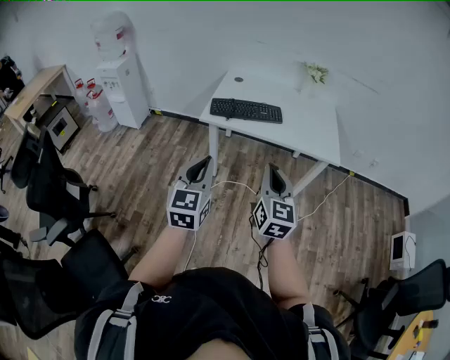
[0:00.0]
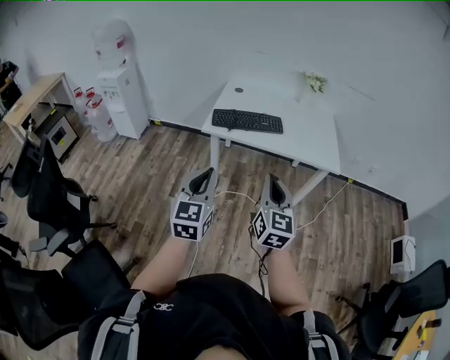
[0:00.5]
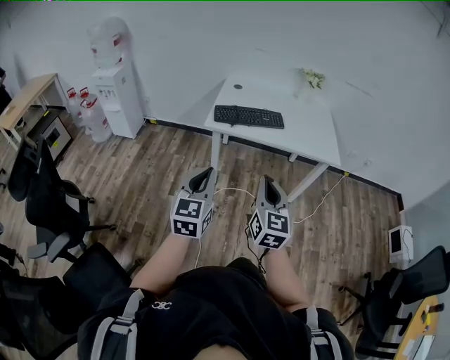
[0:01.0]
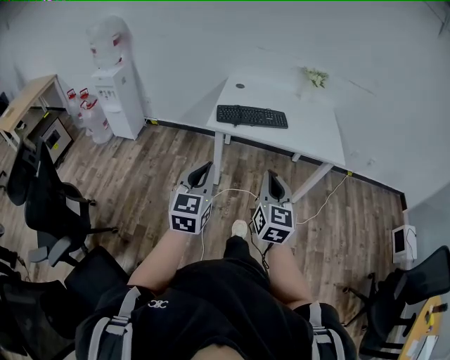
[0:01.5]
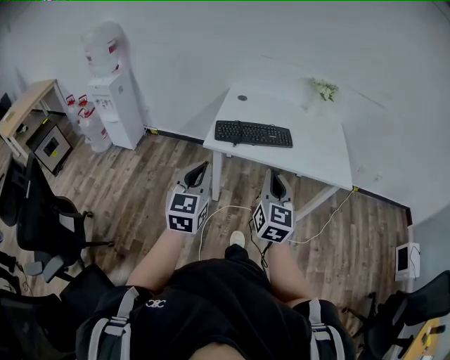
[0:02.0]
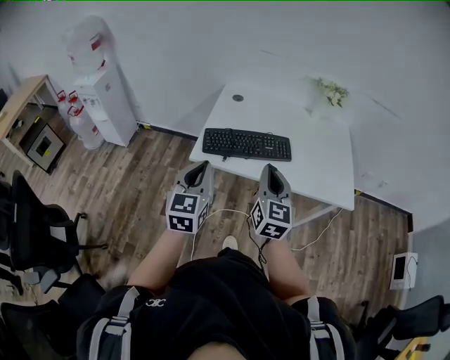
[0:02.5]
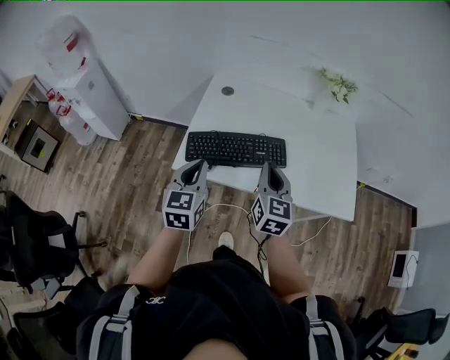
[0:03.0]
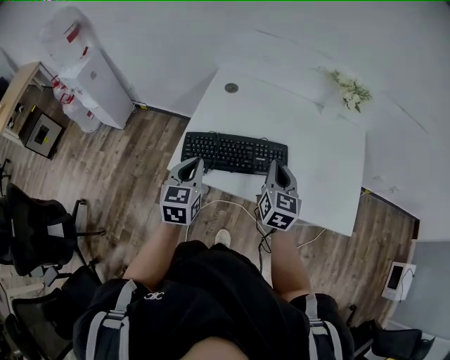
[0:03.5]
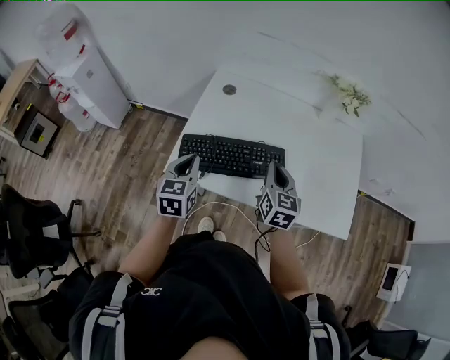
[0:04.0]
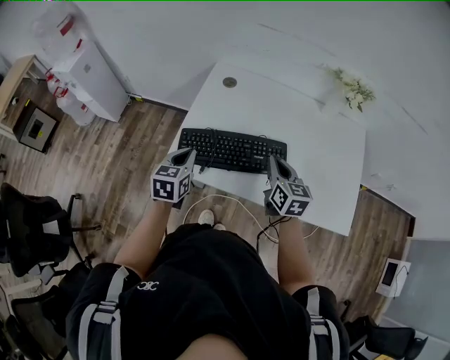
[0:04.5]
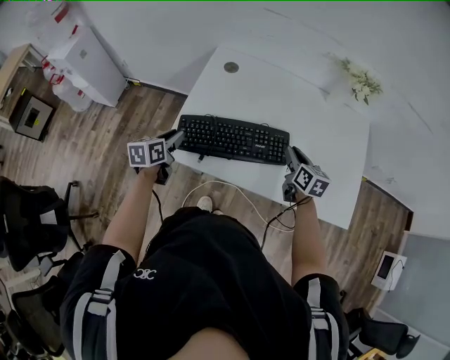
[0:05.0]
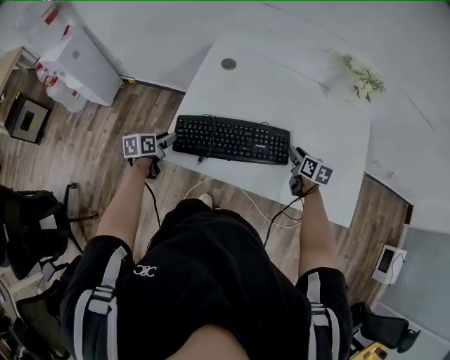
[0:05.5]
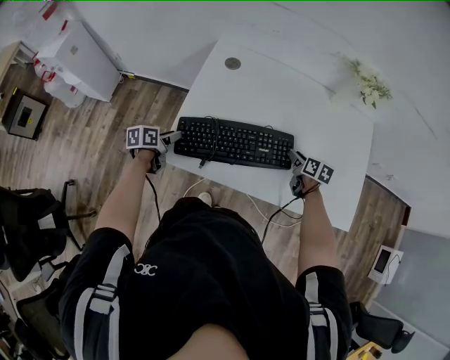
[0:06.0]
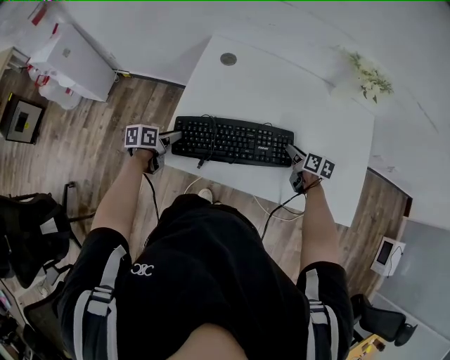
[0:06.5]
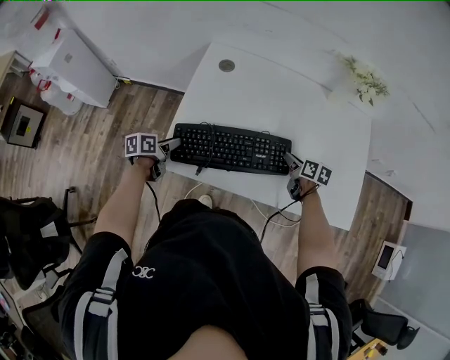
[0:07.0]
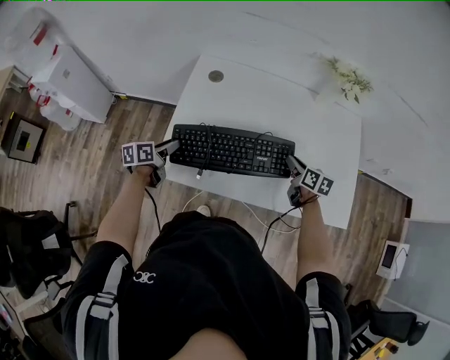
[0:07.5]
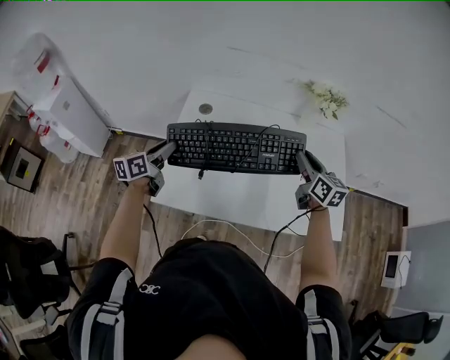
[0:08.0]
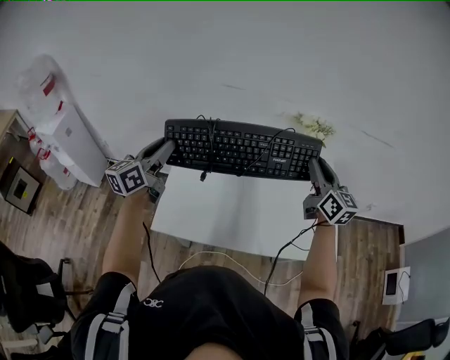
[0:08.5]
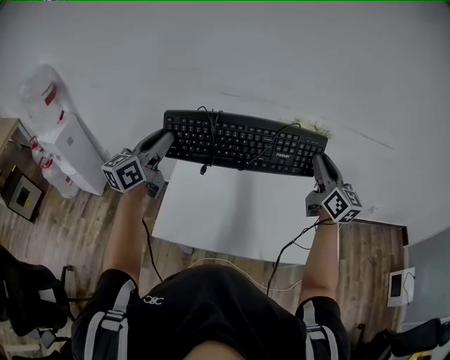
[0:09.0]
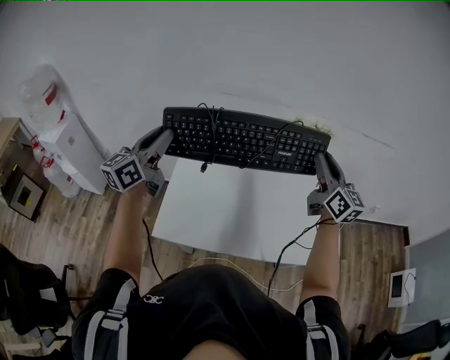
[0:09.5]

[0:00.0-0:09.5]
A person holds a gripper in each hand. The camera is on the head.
0:00.0 to 0:02.0: Both grippers move forward and to the left, about 20 cm.
0:02.0 to 0:04.0: Both grippers are carried forward, about 40 cm. The left gripper changes its angle by roughly 20 degrees; the right gripper rotates about 20 degrees.
0:04.0 to 0:05.5: The right gripper is displaced downward, to the right and forward by about 20 cm, swivels approximately 30 degrees, and opens up. The left gripper moves downward and to the left, roughly 25 cm, changes its angle by roughly 40 degrees, and opens up.
0:05.5 to 0:07.5: The left gripper changes place by approximately 5 cm.
0:07.5 to 0:09.5: Both grippers move upward, some 40 cm. The right gripper points its fingers approximately 40 degrees further upward. Meanwhile the left gripper tilts its fingers roughly 40 degrees upward.

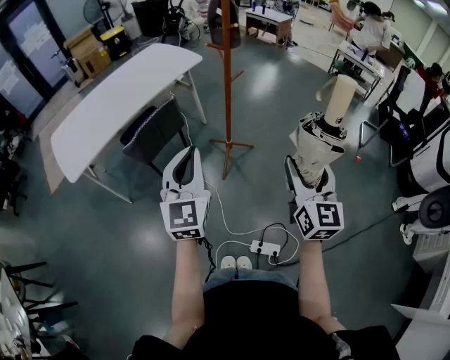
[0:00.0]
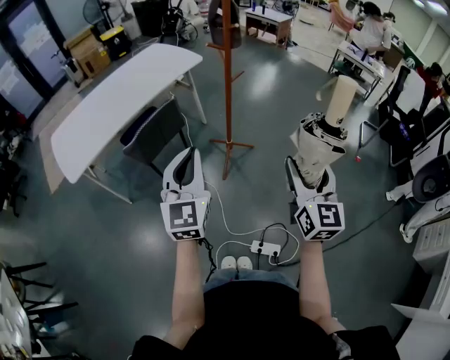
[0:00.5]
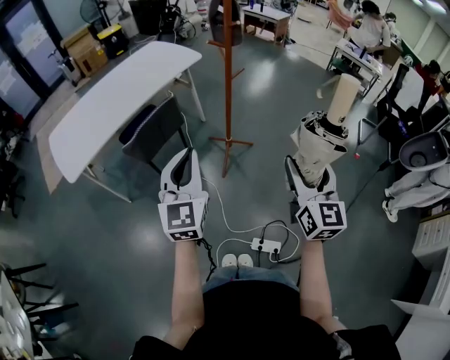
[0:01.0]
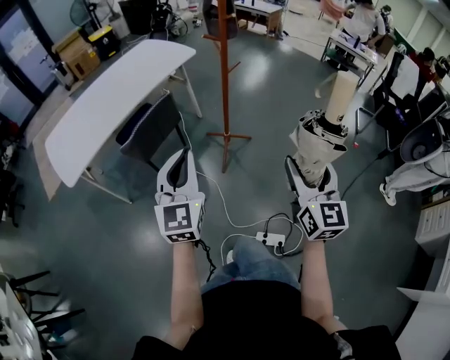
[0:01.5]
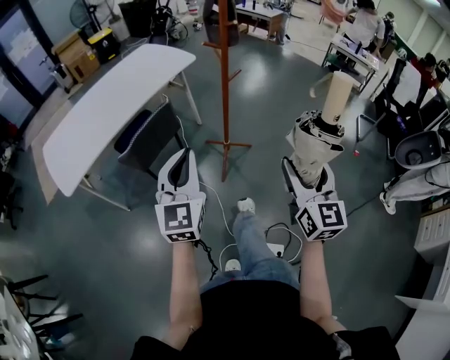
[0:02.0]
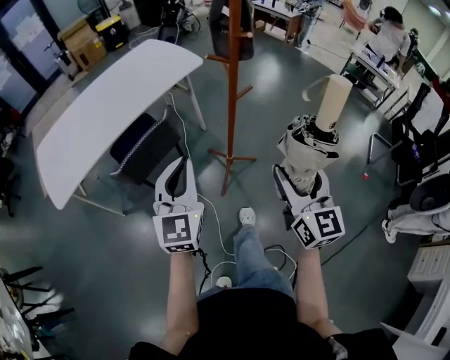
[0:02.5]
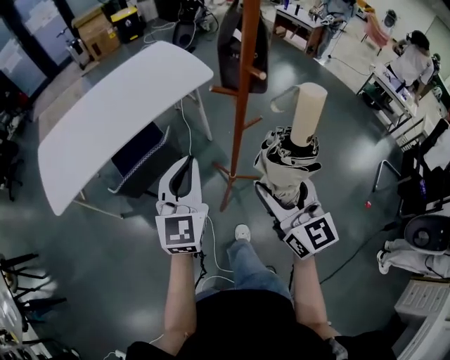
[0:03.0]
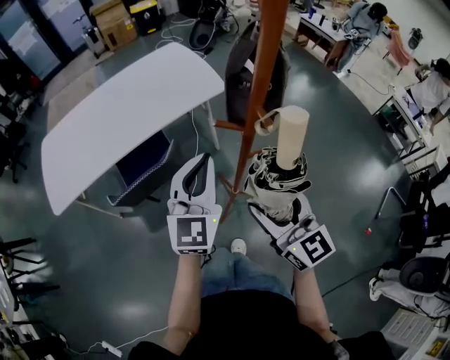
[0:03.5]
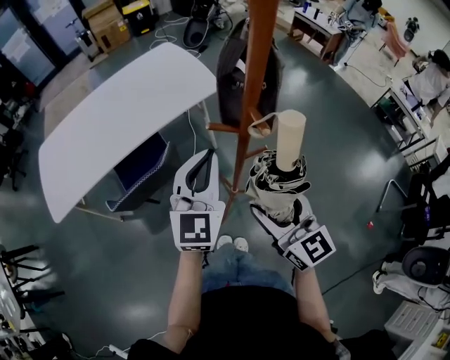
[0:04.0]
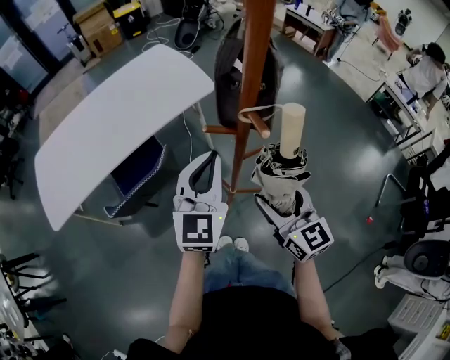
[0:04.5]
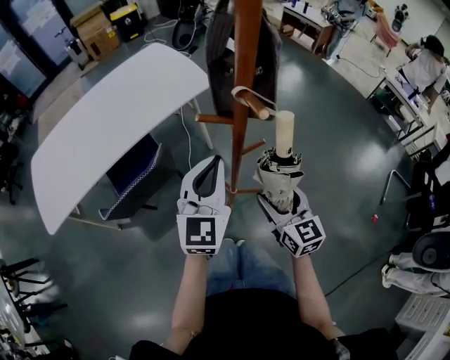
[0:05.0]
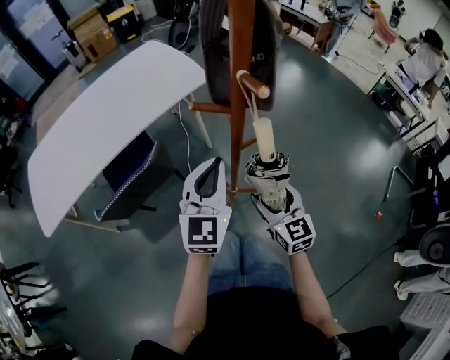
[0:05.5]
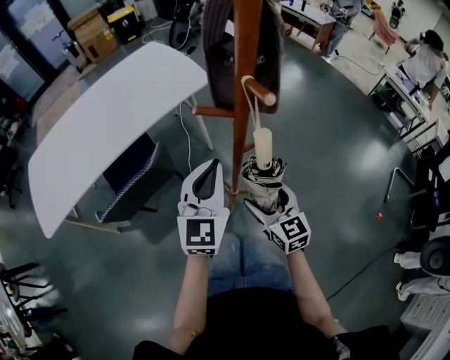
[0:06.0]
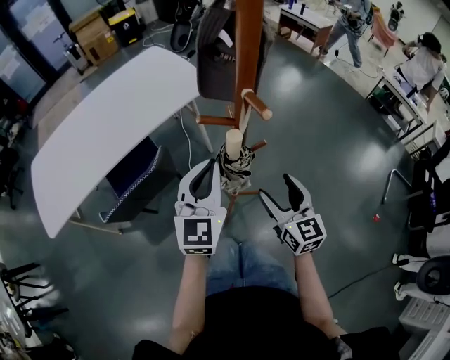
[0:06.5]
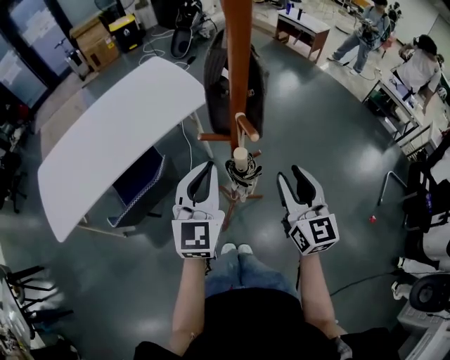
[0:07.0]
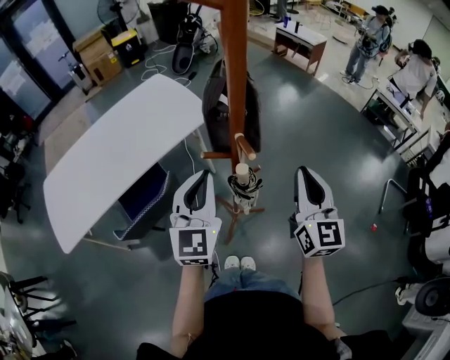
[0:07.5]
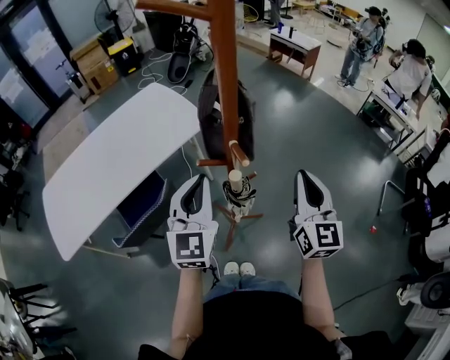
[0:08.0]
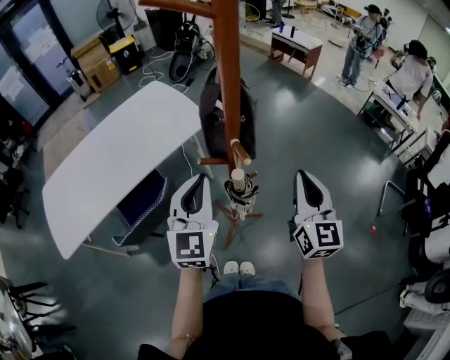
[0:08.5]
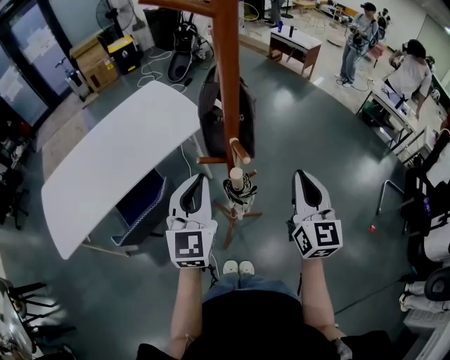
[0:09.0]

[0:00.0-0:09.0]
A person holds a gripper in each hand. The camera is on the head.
0:00.0 to 0:02.0: The left gripper ends up roughly 5 cm from where it was.
0:02.0 to 0:04.5: The pair of grippers is taken roughly 50 cm. The right gripper turns by some 40 degrees.
0:04.5 to 0:07.0: The left gripper moves about 10 cm downward and comes back. Meanwhile the right gripper shifts about 5 cm to the right, reaches roughly 20 cm downward, then returns, and closes.
0:07.0 to 0:09.0: The right gripper moves upward, roughly 5 cm, and closes.

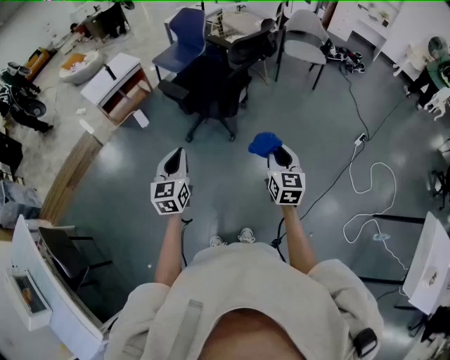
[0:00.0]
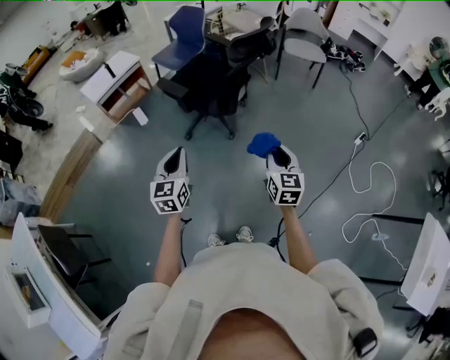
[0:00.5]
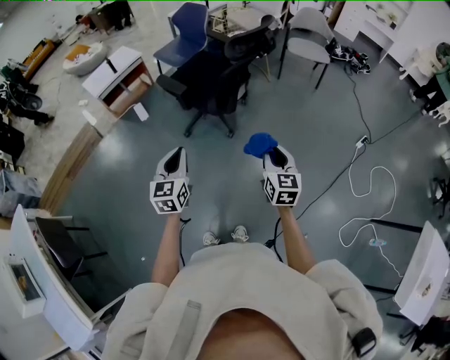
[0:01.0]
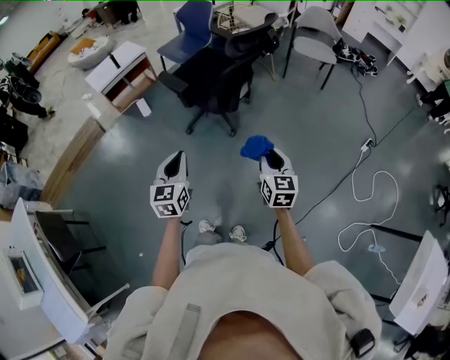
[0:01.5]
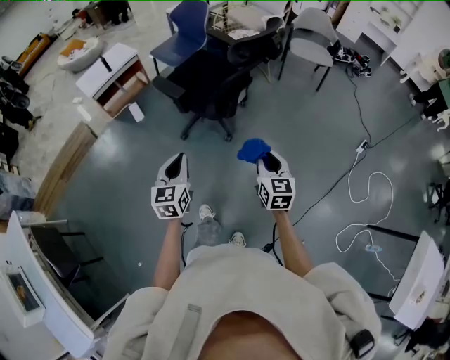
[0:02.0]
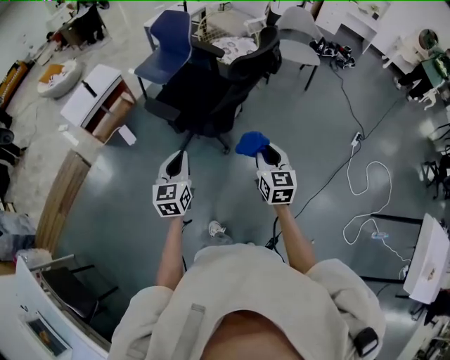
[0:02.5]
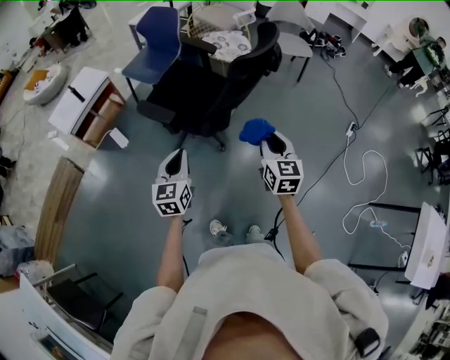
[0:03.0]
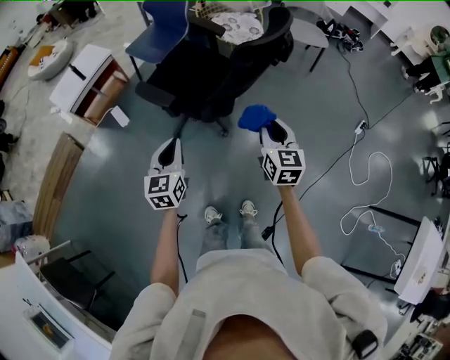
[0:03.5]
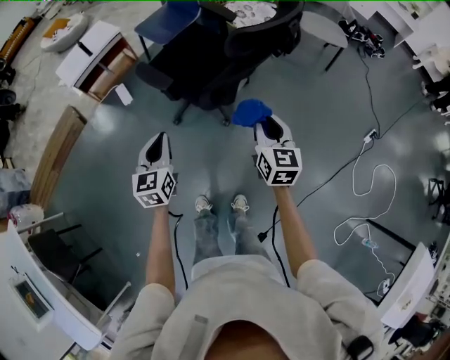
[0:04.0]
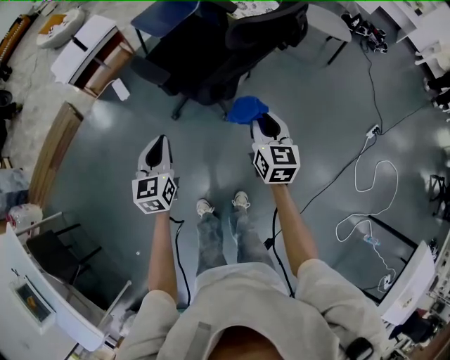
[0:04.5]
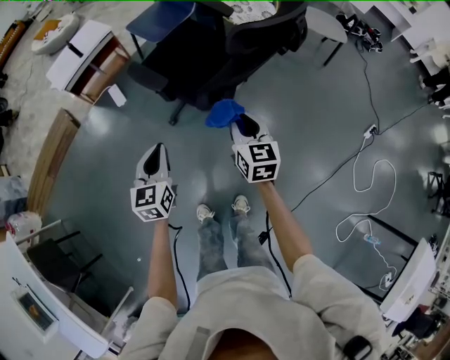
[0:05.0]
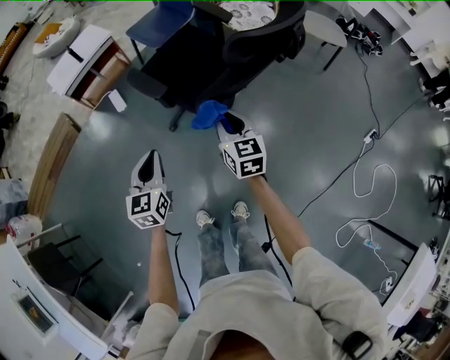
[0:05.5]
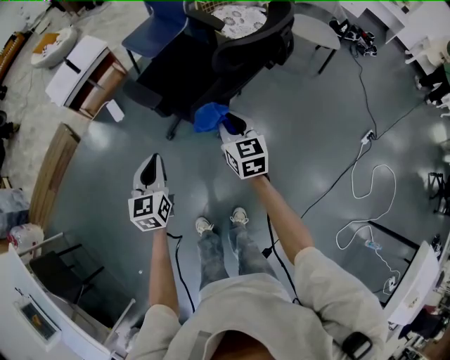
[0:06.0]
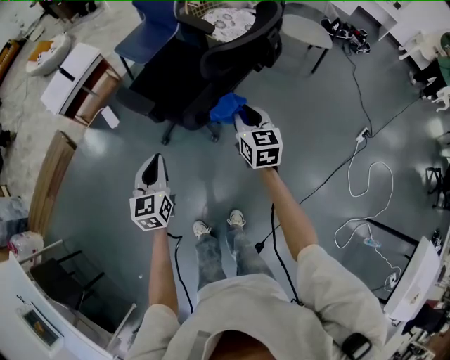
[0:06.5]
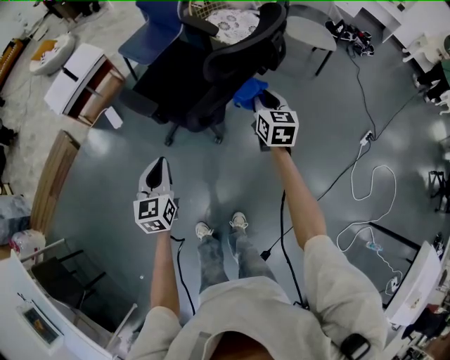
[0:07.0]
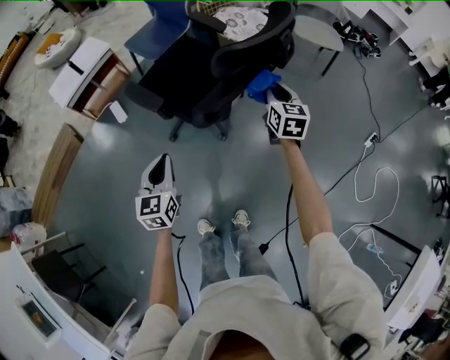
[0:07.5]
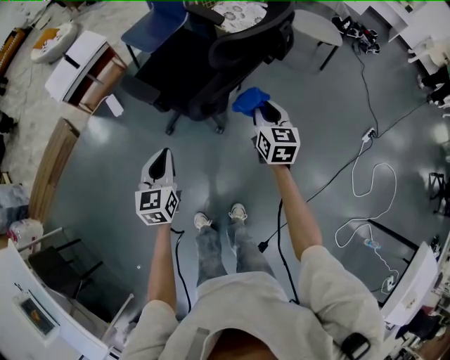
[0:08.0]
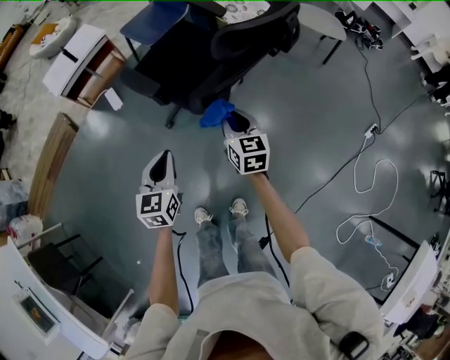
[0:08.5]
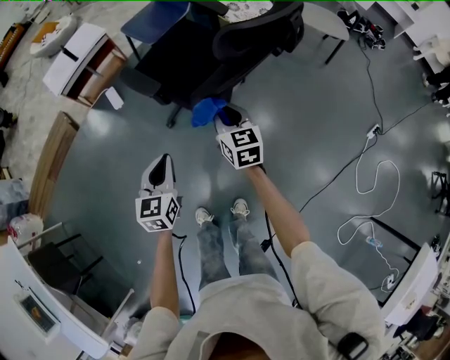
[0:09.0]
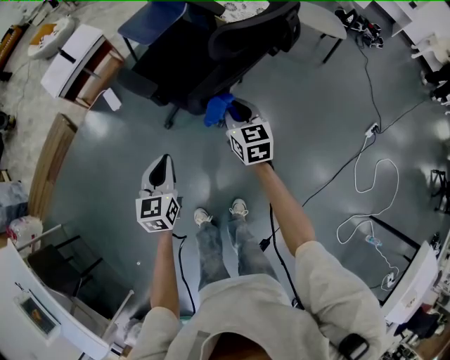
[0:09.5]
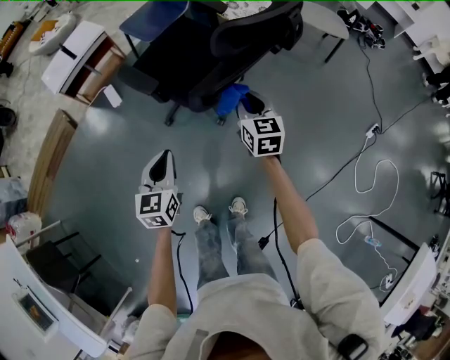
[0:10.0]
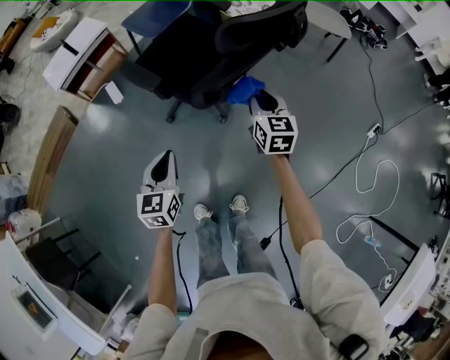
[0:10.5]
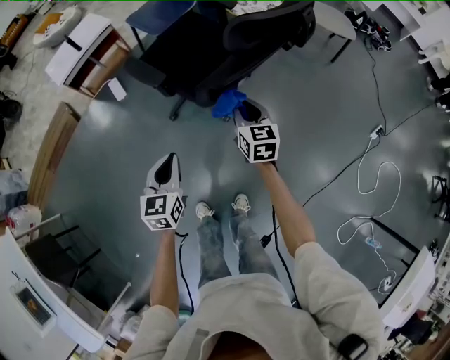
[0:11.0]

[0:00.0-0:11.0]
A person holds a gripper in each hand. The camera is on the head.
0:00.0 to 0:02.0: Both grippers move forward, roughly 5 cm.
0:02.0 to 0:03.5: The two grippers go roughly 20 cm forward.
0:03.5 to 0:05.5: The right gripper moves downward, to the left and forward, approximately 15 cm; the left gripper changes place by some 5 cm.
0:05.5 to 0:07.5: The left gripper shifts about 5 cm to the right. Meanwhile the right gripper is displaced to the right and forward by roughly 20 cm.
0:07.5 to 0:09.0: The right gripper shifts some 20 cm to the left and backward.
